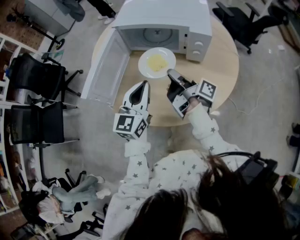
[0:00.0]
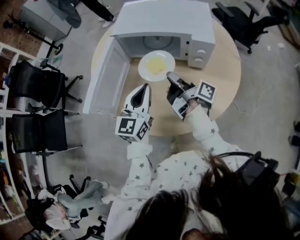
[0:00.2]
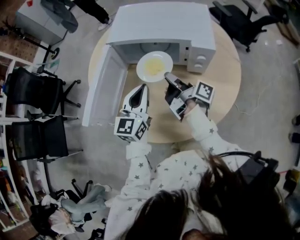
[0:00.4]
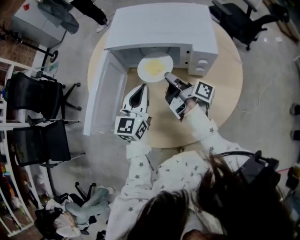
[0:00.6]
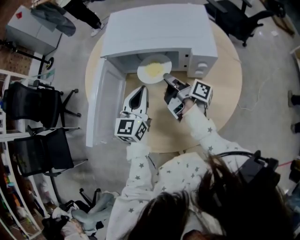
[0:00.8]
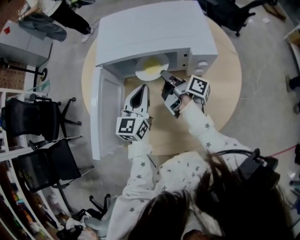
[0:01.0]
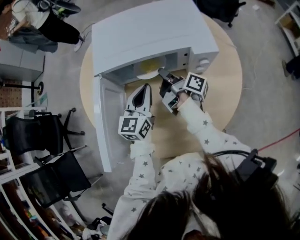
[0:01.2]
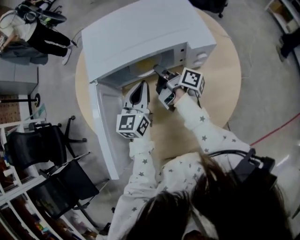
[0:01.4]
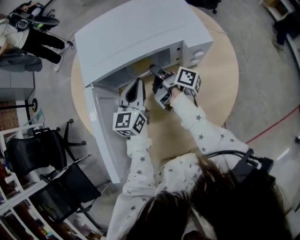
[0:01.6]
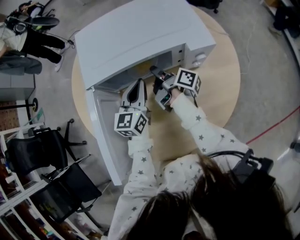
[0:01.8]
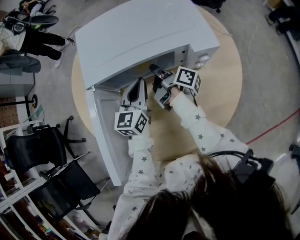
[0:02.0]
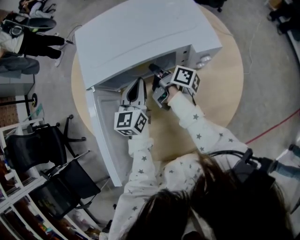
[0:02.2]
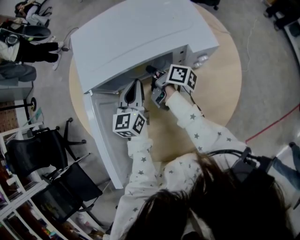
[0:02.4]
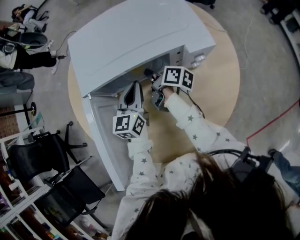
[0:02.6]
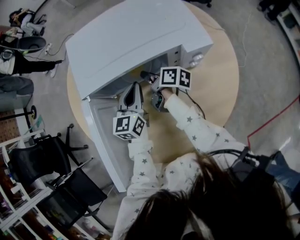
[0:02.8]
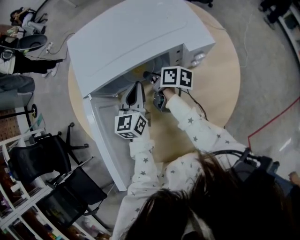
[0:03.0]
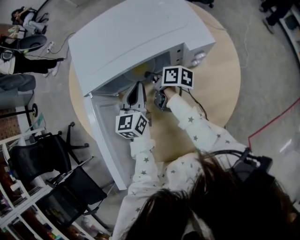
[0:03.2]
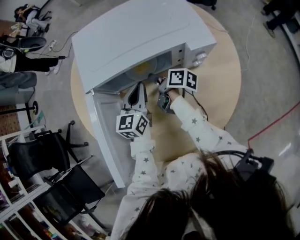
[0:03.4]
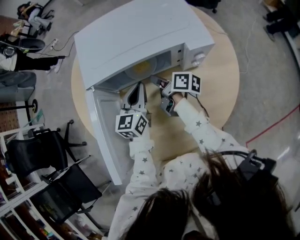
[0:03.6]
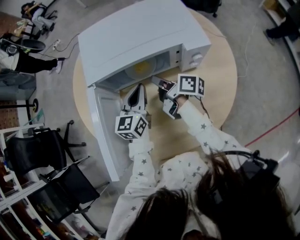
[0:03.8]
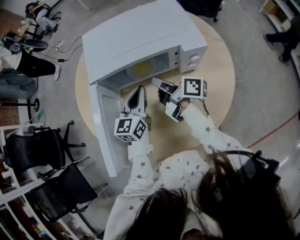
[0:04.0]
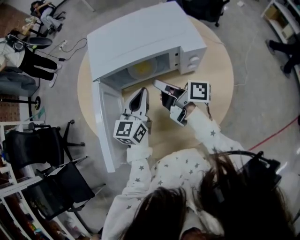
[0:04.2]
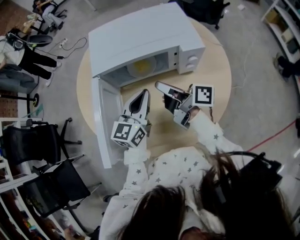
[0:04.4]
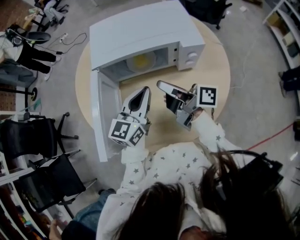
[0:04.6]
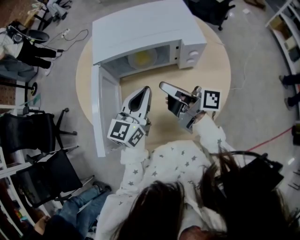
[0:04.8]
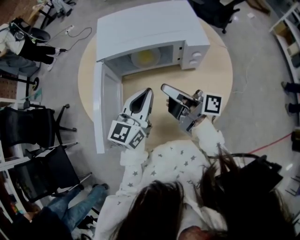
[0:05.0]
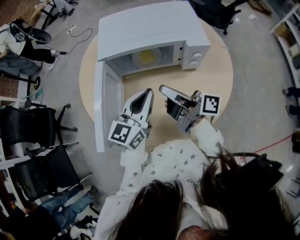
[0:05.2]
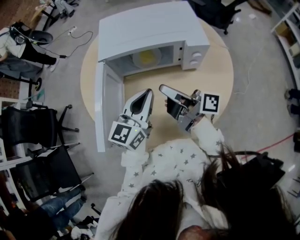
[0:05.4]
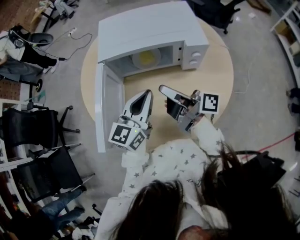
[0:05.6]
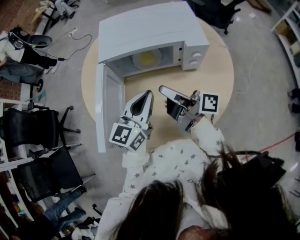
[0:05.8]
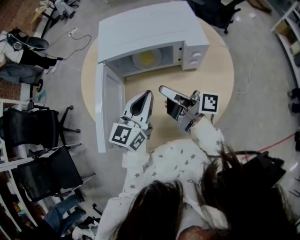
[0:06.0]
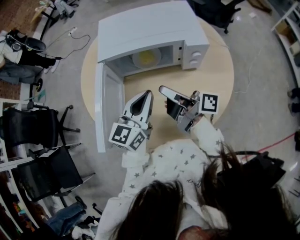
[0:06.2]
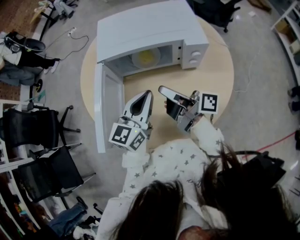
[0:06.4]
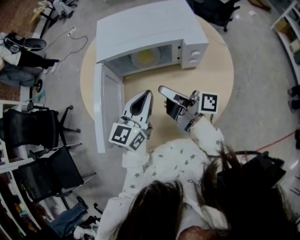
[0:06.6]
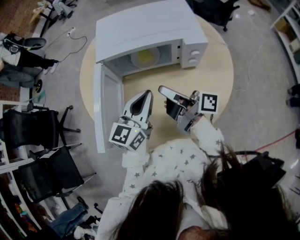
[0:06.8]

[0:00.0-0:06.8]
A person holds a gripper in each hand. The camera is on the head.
0:00.0 to 0:01.4: The left gripper shifts by about 25 cm, and rotates roughly 20 degrees.
0:02.8 to 0:04.0: The left gripper shifts by roughly 5 cm.
0:04.0 to 0:05.4: The left gripper ends up some 15 cm from where it was.

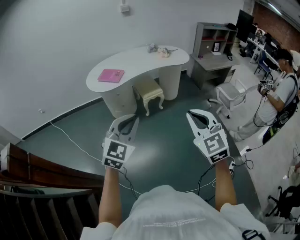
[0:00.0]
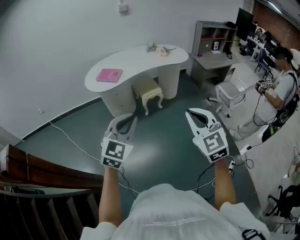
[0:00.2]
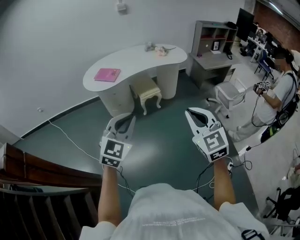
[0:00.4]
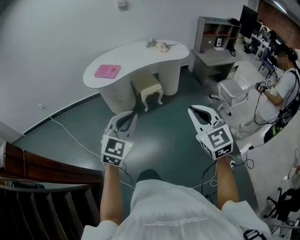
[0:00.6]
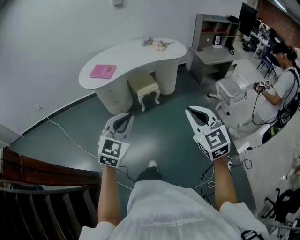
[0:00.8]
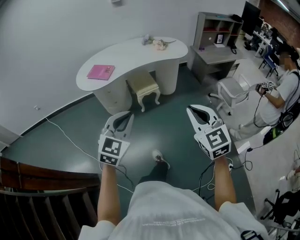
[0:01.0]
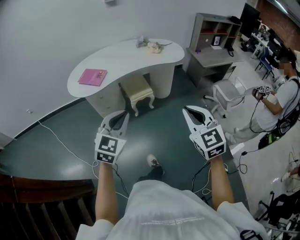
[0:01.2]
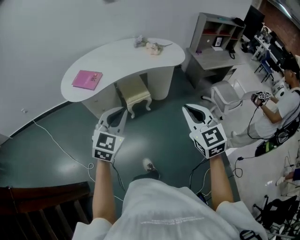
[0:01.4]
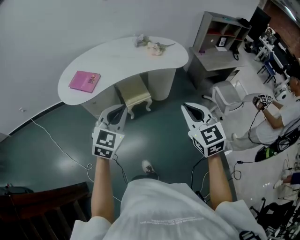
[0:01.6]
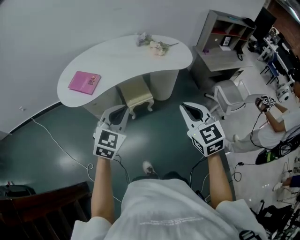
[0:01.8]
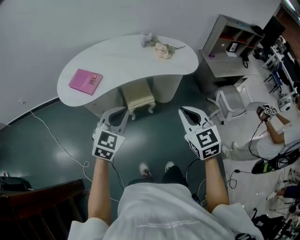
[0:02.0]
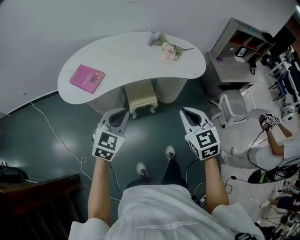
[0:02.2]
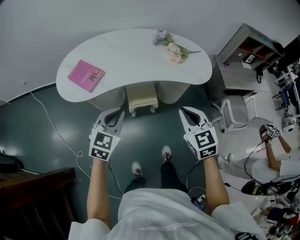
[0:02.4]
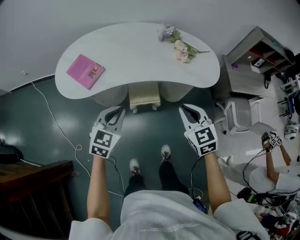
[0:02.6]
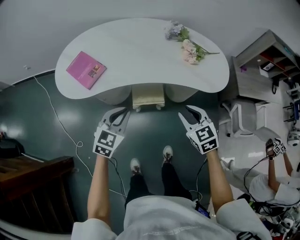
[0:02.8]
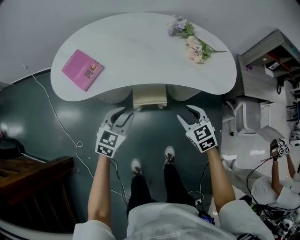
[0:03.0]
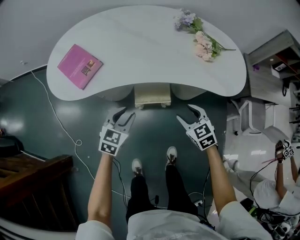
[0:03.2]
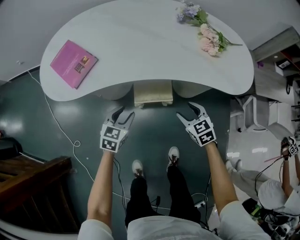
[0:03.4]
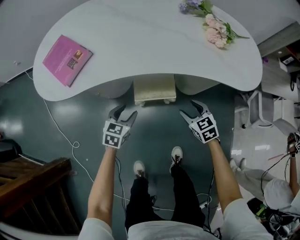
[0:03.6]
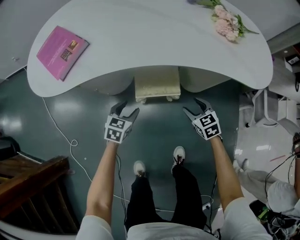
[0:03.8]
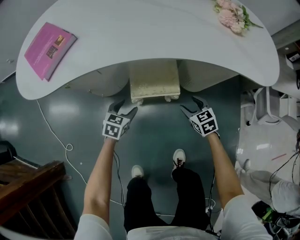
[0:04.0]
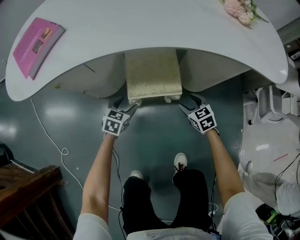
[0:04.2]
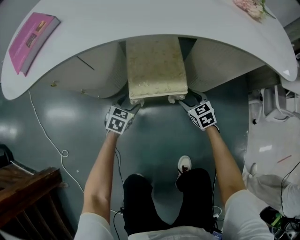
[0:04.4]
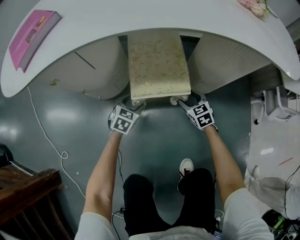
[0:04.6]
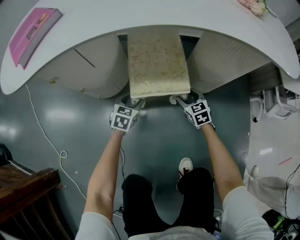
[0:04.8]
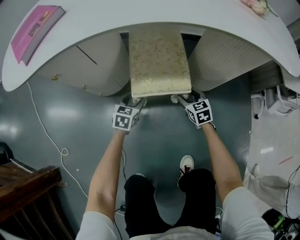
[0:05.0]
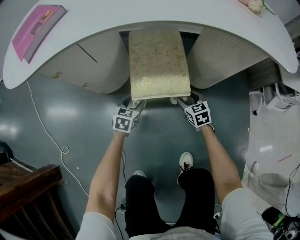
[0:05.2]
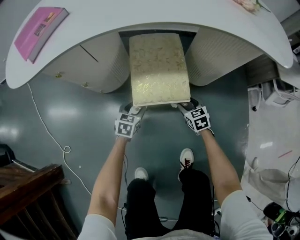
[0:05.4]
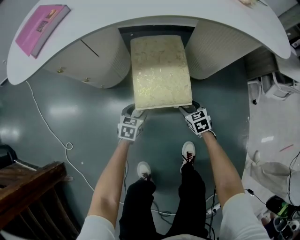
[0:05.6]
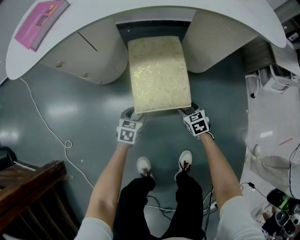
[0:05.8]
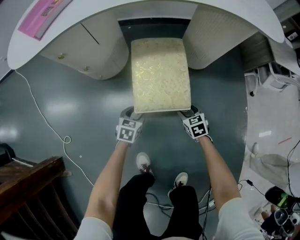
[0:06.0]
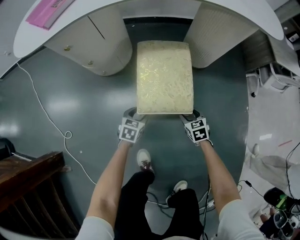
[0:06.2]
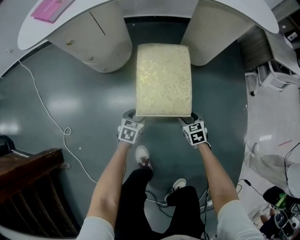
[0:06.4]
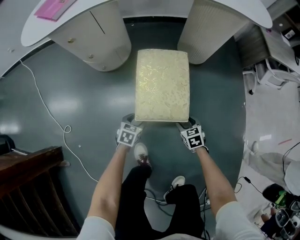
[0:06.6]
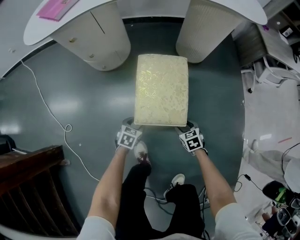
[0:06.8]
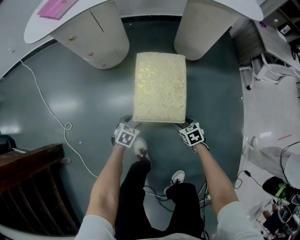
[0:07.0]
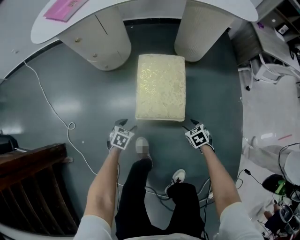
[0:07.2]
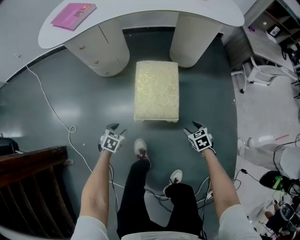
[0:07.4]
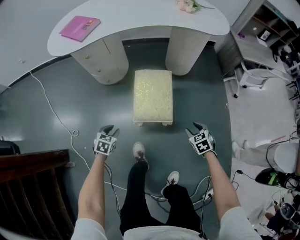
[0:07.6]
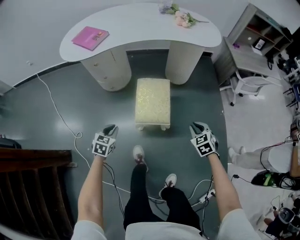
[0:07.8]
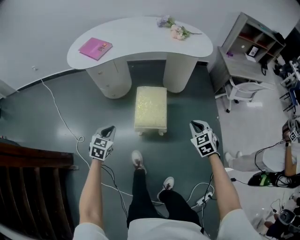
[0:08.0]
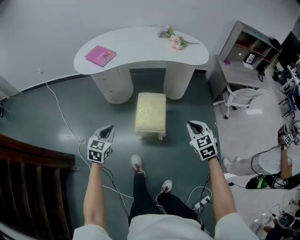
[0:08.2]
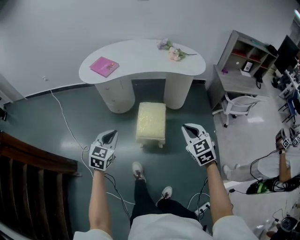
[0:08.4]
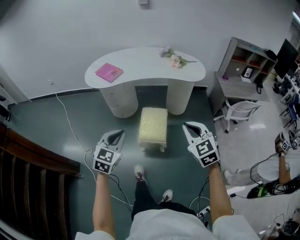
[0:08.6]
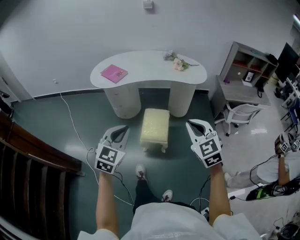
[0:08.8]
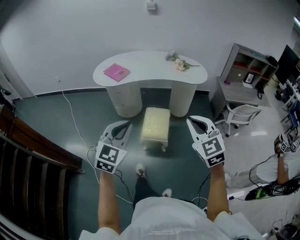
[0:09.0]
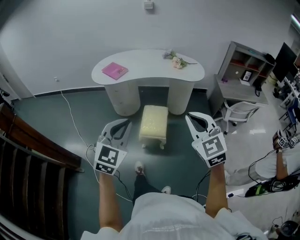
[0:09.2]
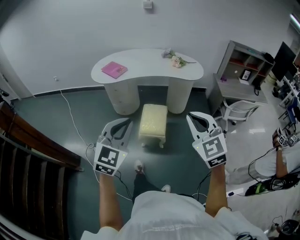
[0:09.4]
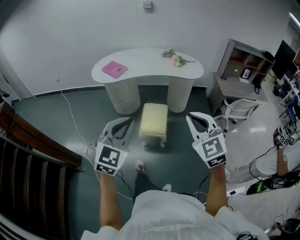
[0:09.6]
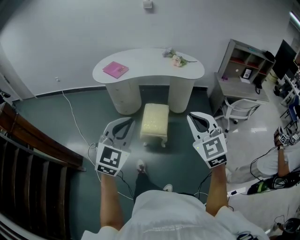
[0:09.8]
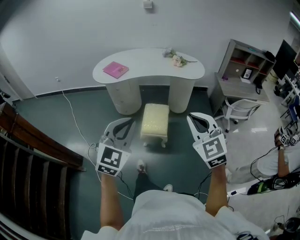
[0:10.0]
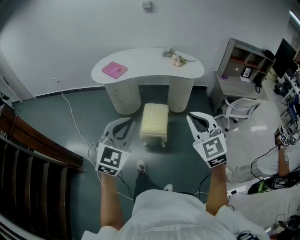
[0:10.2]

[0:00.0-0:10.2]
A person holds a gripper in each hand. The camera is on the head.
0:00.0 to 0:01.4: Both grippers move forward, about 30 cm.
0:01.4 to 0:03.0: The two grippers go approximately 40 cm forward and downward. The right gripper swivels roughly 30 degrees, and opens, while the left gripper rotates approximately 30 degrees.
0:03.0 to 0:04.4: The grippers both shift downward by some 50 cm. The left gripper opens its fingers. Meanwhile the right gripper opens.
0:04.4 to 0:05.8: Both grippers travel together backward, some 15 cm.
0:05.8 to 0:07.2: Both grippers travel together backward, approximately 25 cm.
0:07.2 to 0:08.8: Both grippers move upward, some 70 cm. The left gripper points its fingers roughly 50 degrees further upward, and closes. The right gripper tilts its fingers approximately 50 degrees upward, and closes up.
0:08.8 to 0:10.2: Both grippers move backward and upward, about 10 cm.

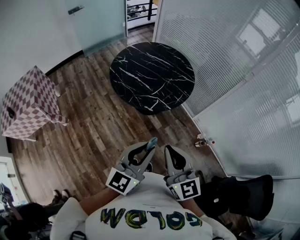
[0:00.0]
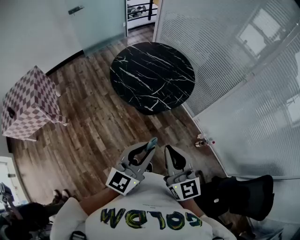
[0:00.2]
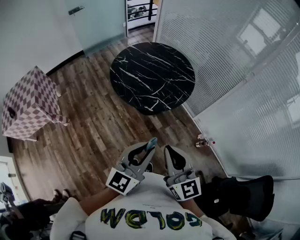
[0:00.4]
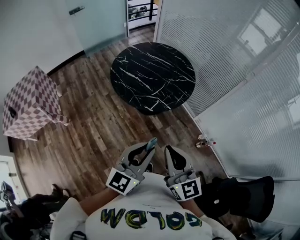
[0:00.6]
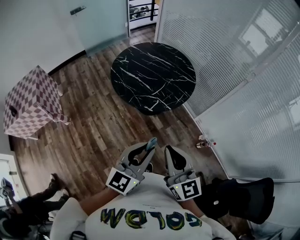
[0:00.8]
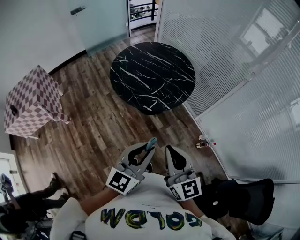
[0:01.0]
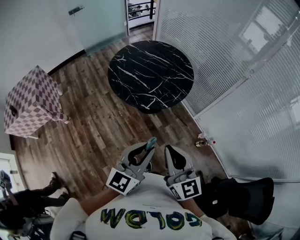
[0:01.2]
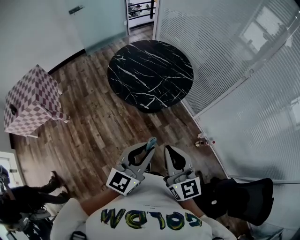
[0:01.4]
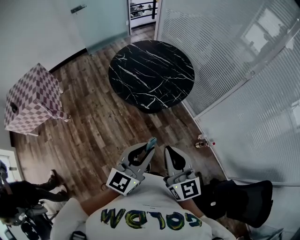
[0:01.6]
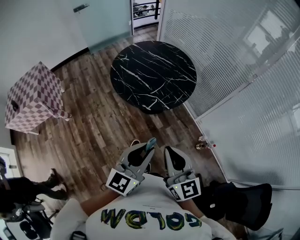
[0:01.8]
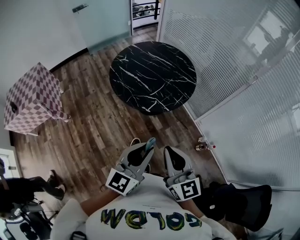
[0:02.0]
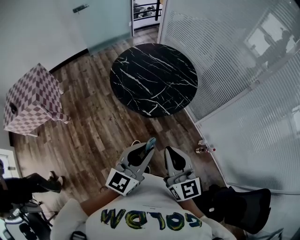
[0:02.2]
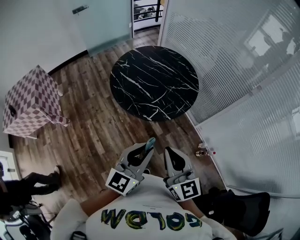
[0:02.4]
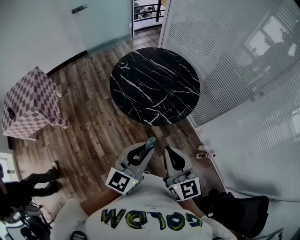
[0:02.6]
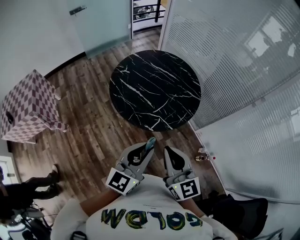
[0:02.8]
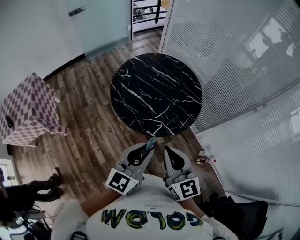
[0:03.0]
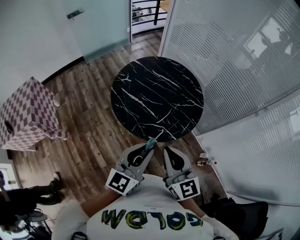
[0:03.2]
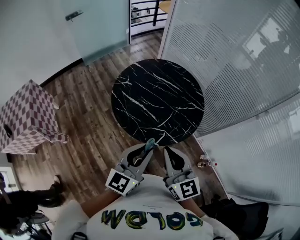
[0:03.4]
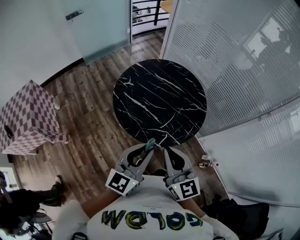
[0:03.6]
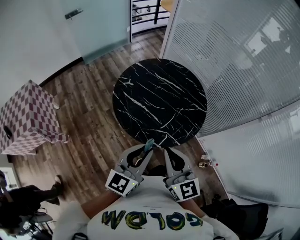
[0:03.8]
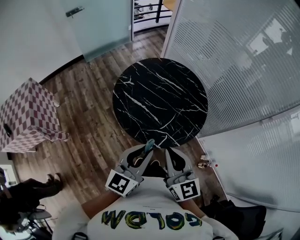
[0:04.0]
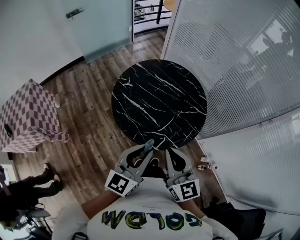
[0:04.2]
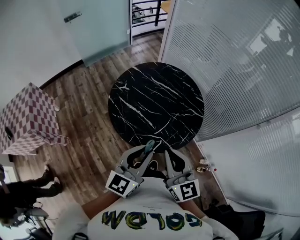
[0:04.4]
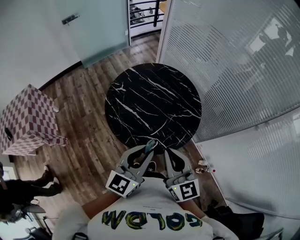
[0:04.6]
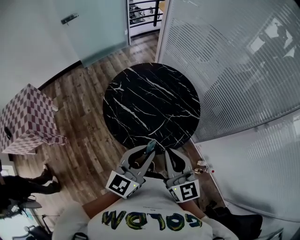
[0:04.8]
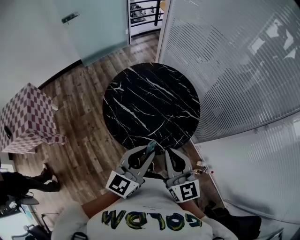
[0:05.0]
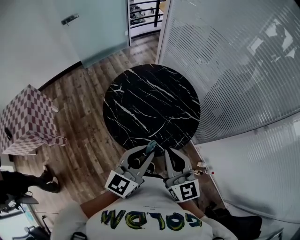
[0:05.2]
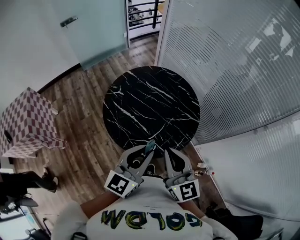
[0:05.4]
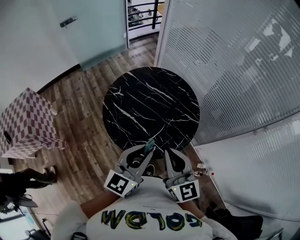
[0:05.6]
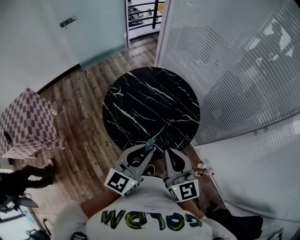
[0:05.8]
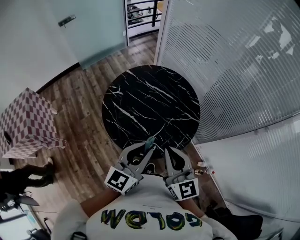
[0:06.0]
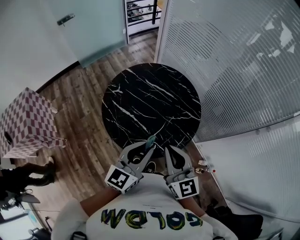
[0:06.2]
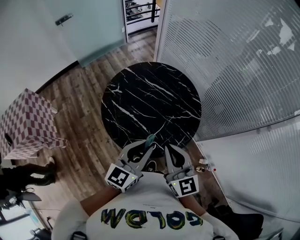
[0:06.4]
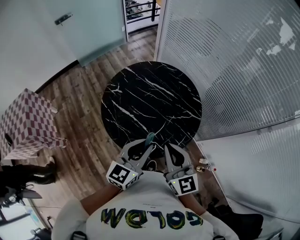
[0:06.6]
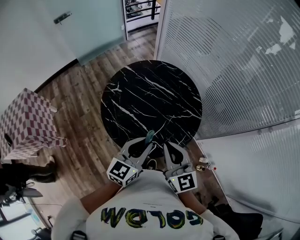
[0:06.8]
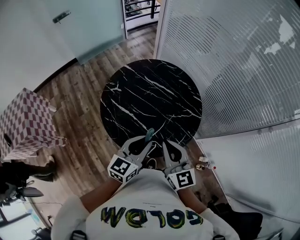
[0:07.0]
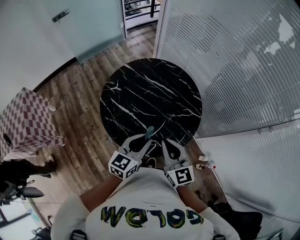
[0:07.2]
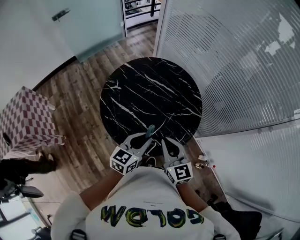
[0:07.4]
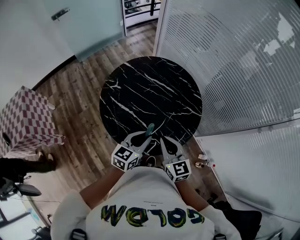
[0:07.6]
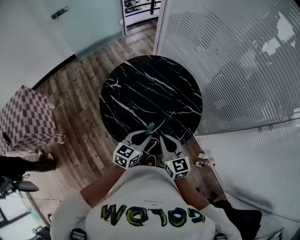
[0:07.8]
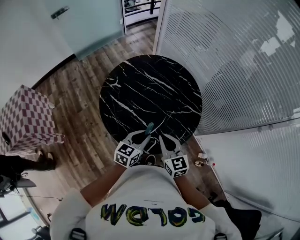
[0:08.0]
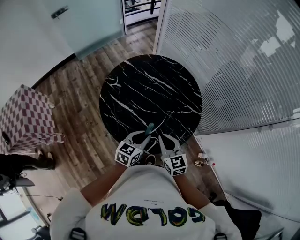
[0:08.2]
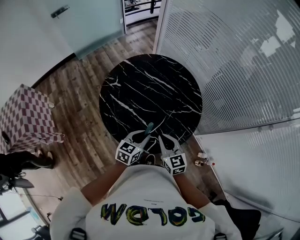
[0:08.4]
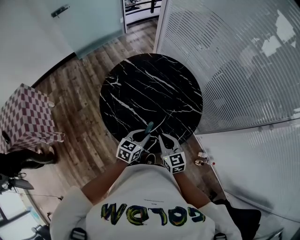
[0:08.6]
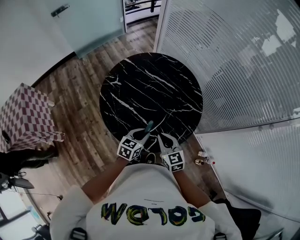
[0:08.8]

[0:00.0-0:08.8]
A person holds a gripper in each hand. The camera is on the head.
0:00.0 to 0:01.4: The grippers both shift to the right by about 5 cm.
0:01.4 to 0:03.0: The grippers both shift forward and to the left by about 20 cm.
0:03.0 to 0:04.4: Both grippers travel together forward, approximately 10 cm.
0:04.4 to 0:05.8: The right gripper moves roughly 5 cm, while the left gripper moves roughly 5 cm.
0:05.8 to 0:07.4: The two grippers go some 15 cm downward and forward.
0:07.4 to 0:08.8: The two grippers go roughly 15 cm downward.
